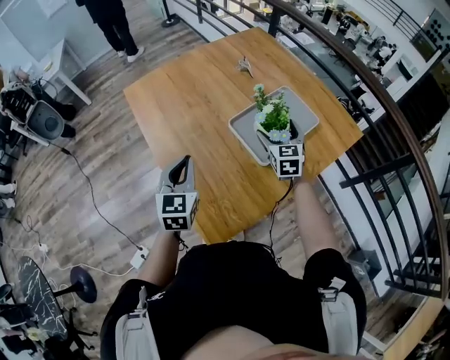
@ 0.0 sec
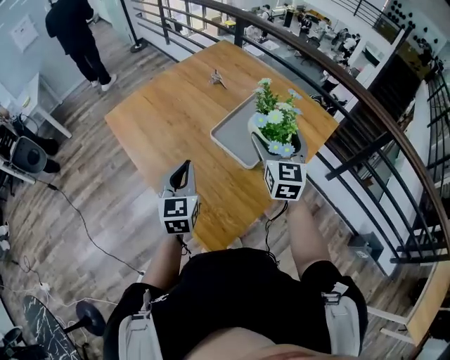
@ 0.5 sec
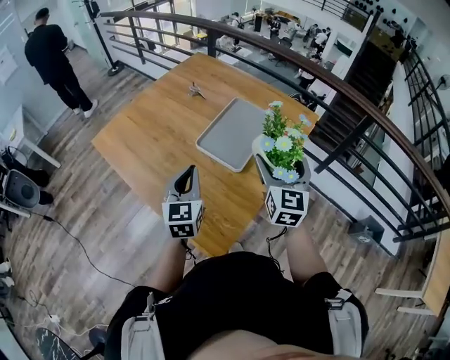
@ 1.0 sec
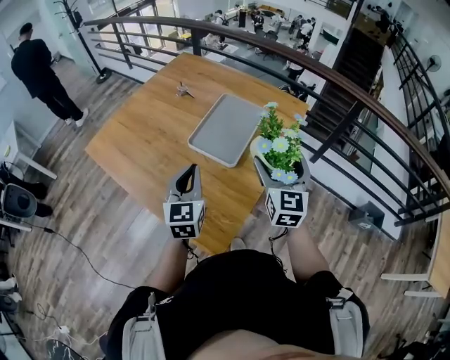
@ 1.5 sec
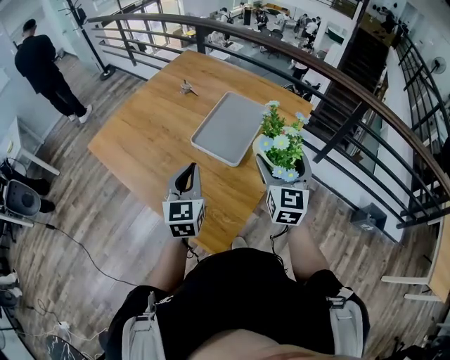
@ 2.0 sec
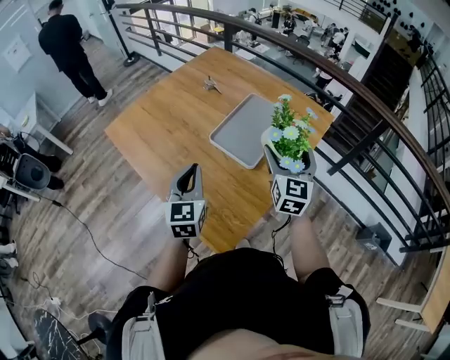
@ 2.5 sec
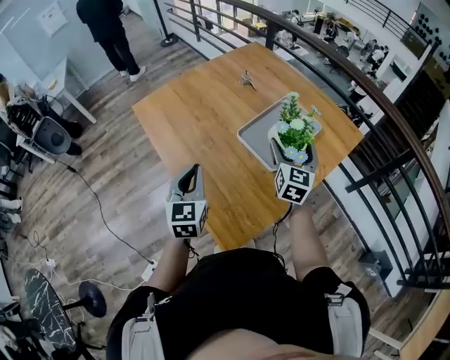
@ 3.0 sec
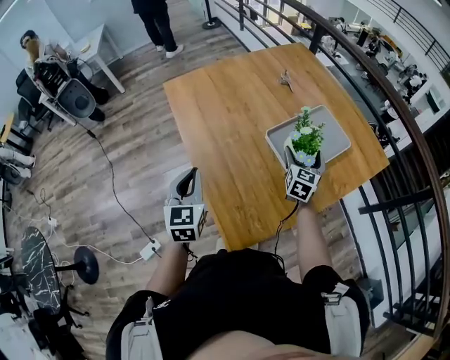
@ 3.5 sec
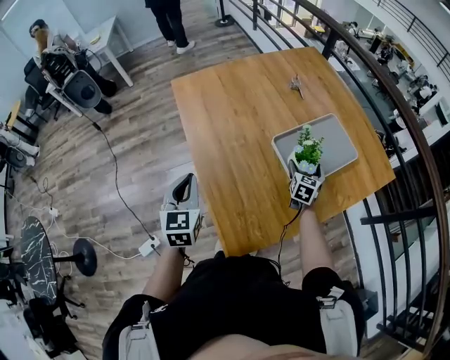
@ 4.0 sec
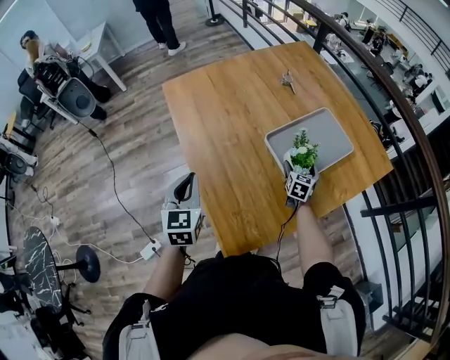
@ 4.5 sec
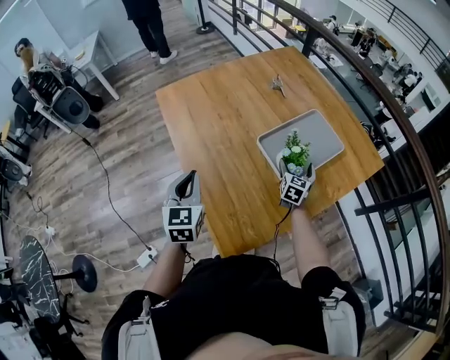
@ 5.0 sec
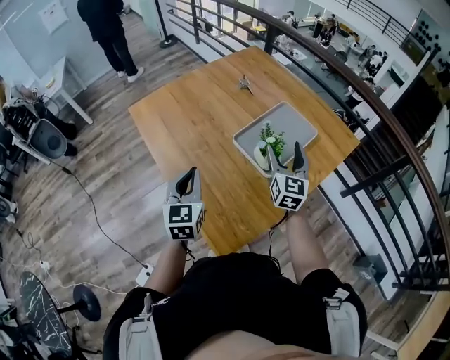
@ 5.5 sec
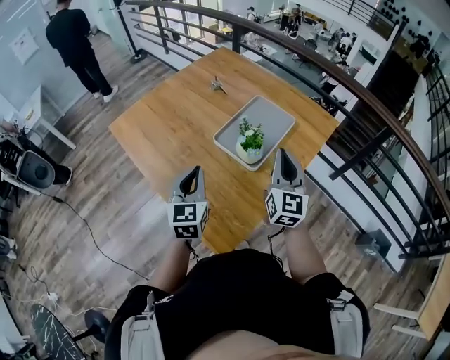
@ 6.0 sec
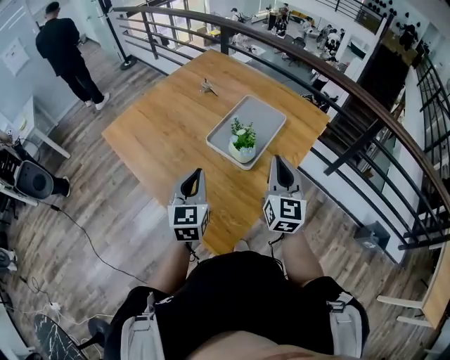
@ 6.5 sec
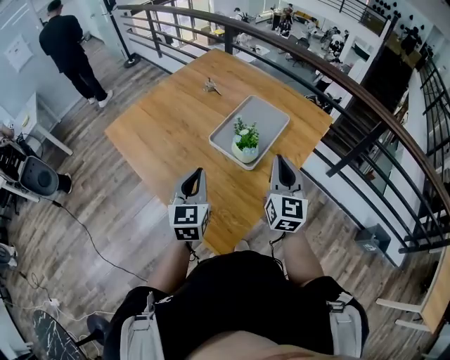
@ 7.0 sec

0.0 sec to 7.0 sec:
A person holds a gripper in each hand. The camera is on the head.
0.0 sec to 2.0 sec: The left gripper ends up roughly 10 cm from where it was, and swivels about 20 degrees; the right gripper ends up some 25 cm from where it was, and changes its angle by roughly 30 degrees.
2.0 sec to 3.5 sec: The left gripper shifts about 15 cm to the left, and rotates about 30 degrees, while the right gripper goes some 25 cm forward, downward and to the left, and changes its angle by some 20 degrees.
3.5 sec to 5.0 sec: The right gripper goes approximately 10 cm downward.
5.0 sec to 7.0 sec: The left gripper shifts roughly 15 cm to the right, and changes its angle by some 30 degrees. Meanwhile the right gripper travels upward and backward by some 30 cm, rotates some 20 degrees, and closes its fingers.

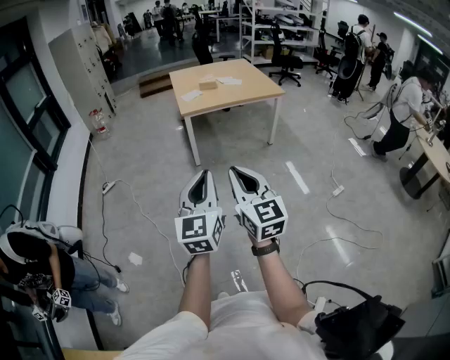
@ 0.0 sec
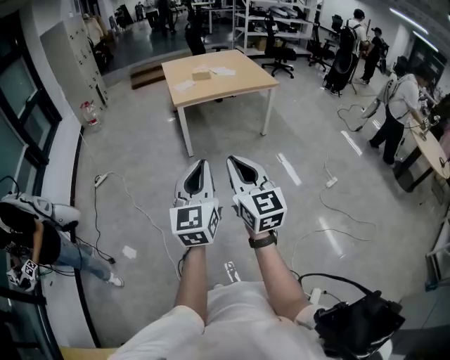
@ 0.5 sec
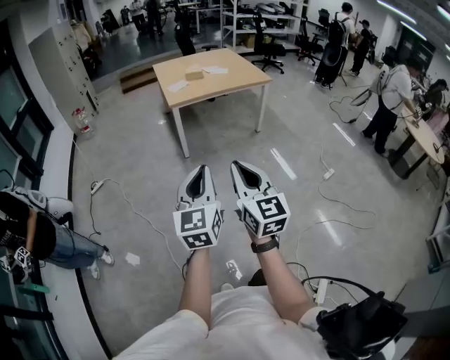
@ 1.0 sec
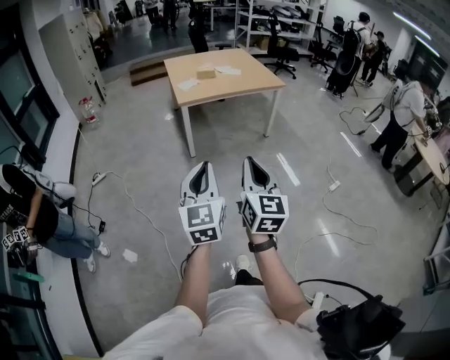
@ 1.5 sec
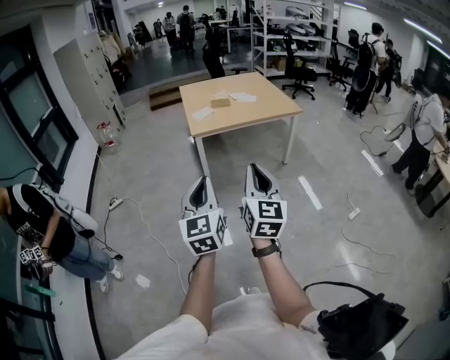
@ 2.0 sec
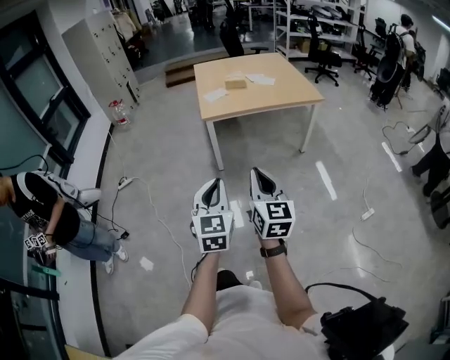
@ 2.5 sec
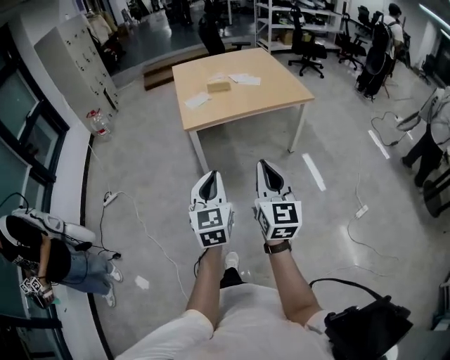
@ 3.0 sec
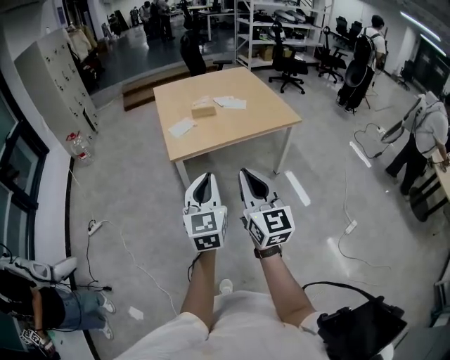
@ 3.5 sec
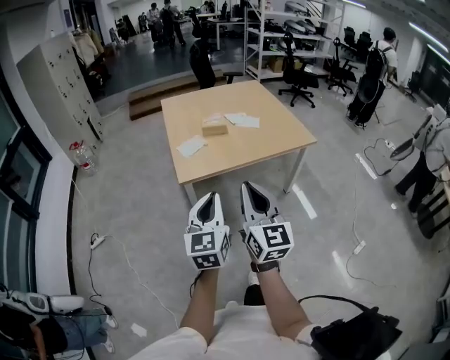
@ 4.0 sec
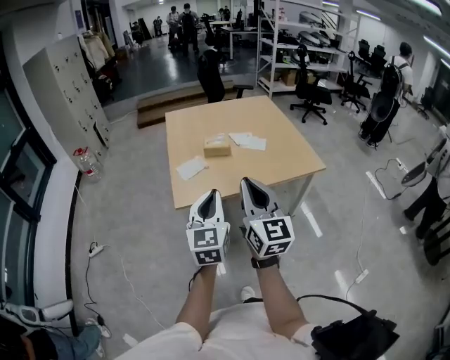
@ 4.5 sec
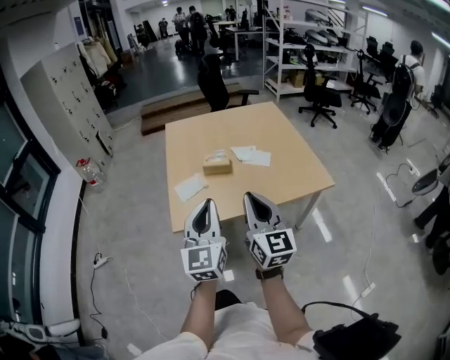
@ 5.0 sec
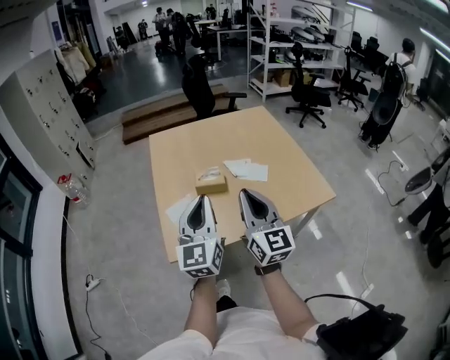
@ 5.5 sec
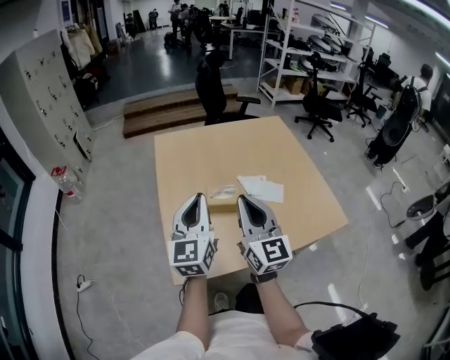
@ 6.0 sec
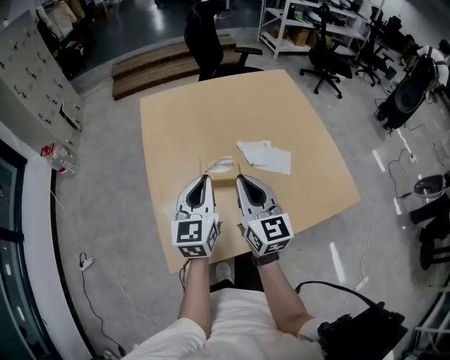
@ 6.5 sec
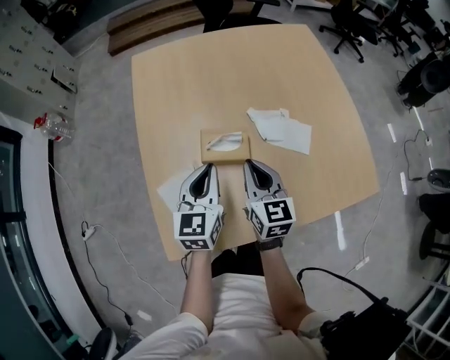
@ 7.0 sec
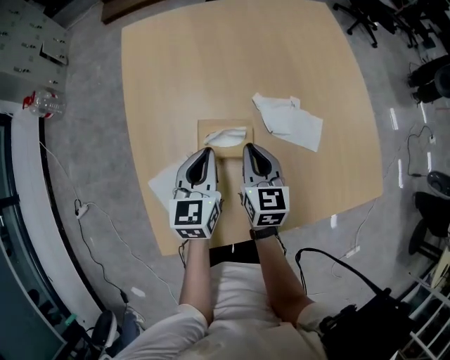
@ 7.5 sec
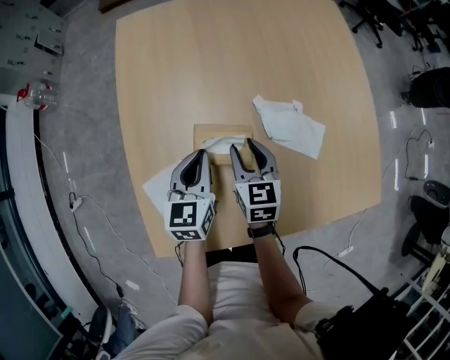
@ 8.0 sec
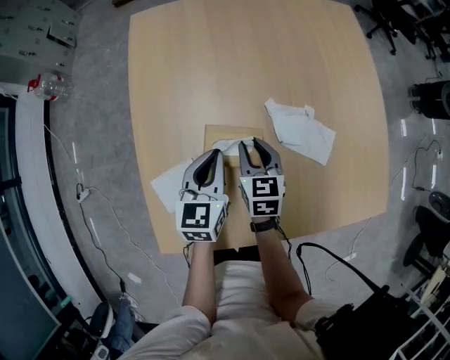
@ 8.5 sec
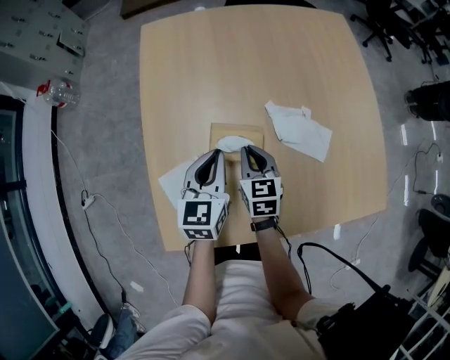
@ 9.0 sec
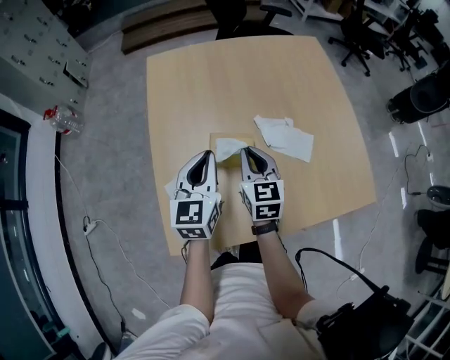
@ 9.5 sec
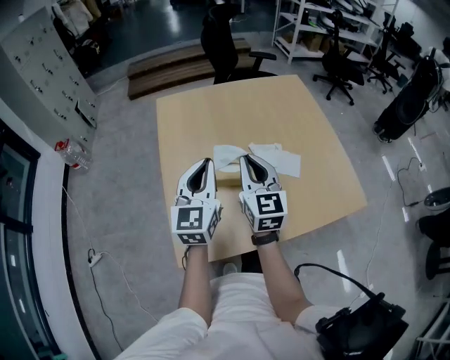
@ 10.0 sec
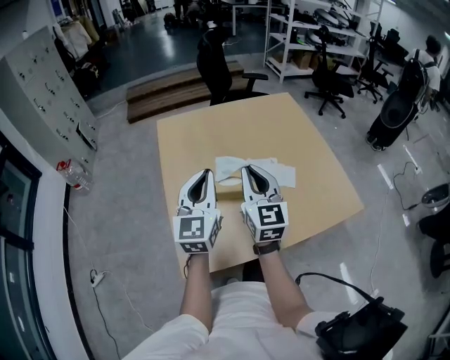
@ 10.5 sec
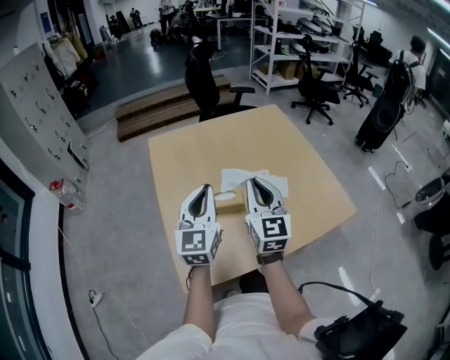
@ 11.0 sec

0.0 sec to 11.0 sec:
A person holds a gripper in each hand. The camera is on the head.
0.0 sec to 2.0 sec: Both grippers move forward, roughly 20 cm.
2.0 sec to 3.5 sec: Both grippers travel together forward, approximately 35 cm.
3.5 sec to 5.5 sec: The pair of grippers is taken forward, roughly 50 cm.
5.5 sec to 7.5 sec: Both grippers move forward and downward, roughly 50 cm. The left gripper tilts its fingers some 30 degrees downward. Meanwhile the right gripper points its fingers approximately 40 degrees further downward.
7.5 sec to 9.0 sec: The right gripper opens, then closes once more.
9.0 sec to 11.0 sec: Both grippers travel together upward and backward, some 30 cm. The left gripper swivels some 30 degrees. Meanwhile the right gripper angles its fingers upward, by about 40 degrees.

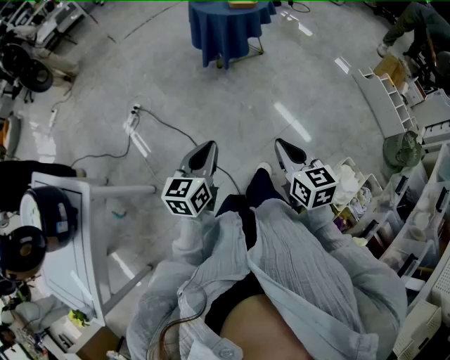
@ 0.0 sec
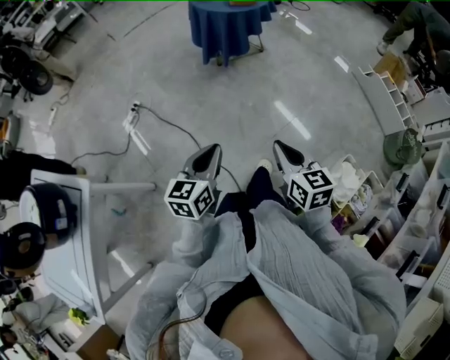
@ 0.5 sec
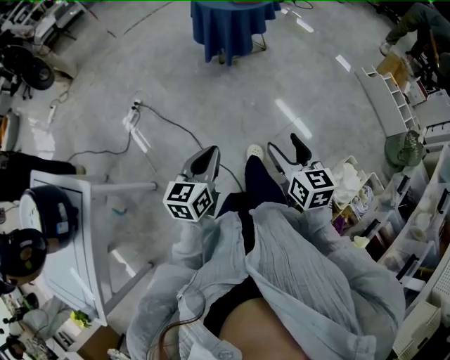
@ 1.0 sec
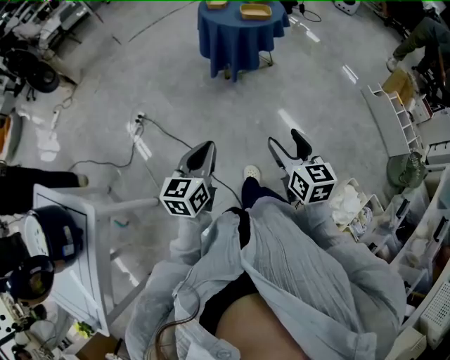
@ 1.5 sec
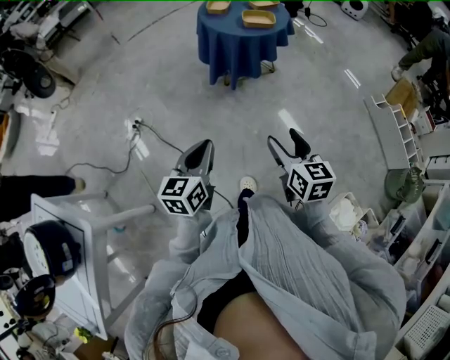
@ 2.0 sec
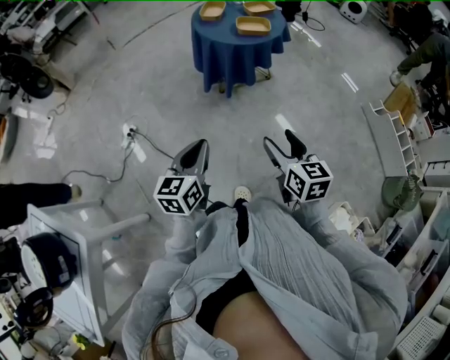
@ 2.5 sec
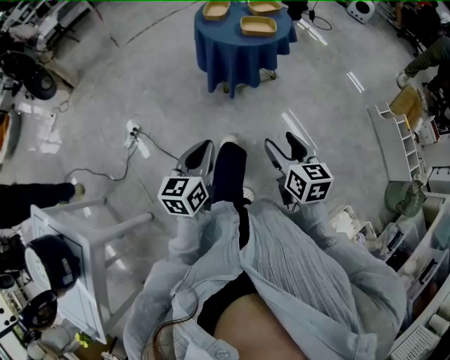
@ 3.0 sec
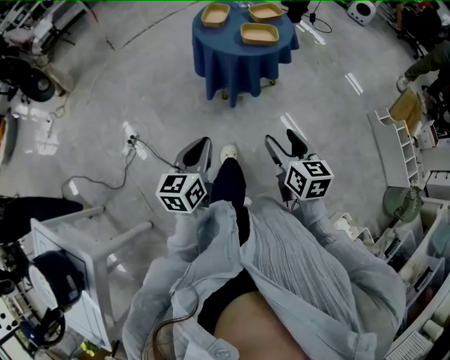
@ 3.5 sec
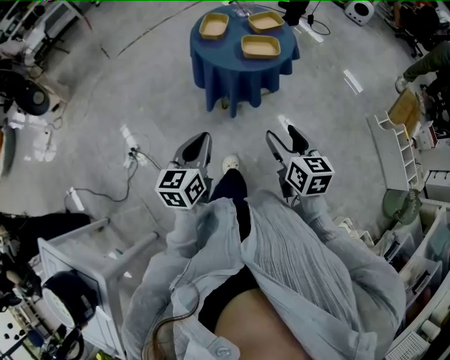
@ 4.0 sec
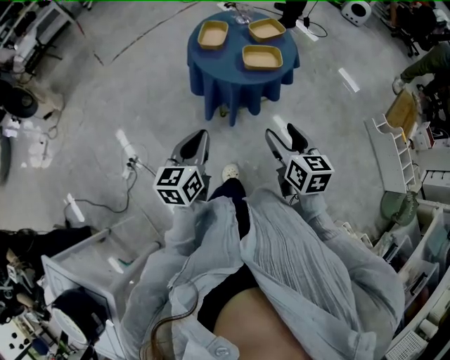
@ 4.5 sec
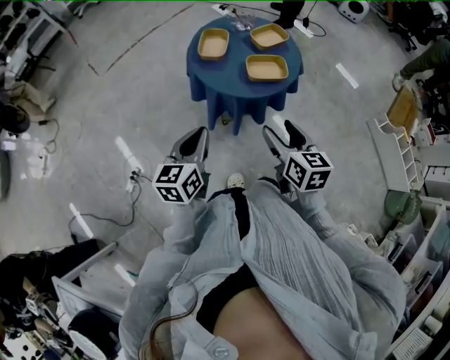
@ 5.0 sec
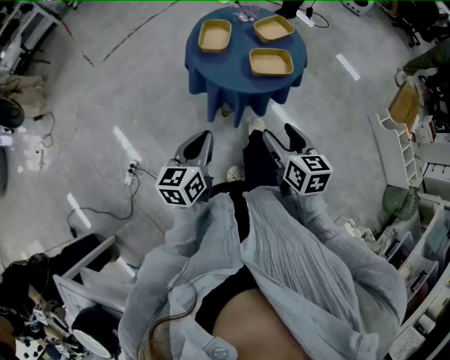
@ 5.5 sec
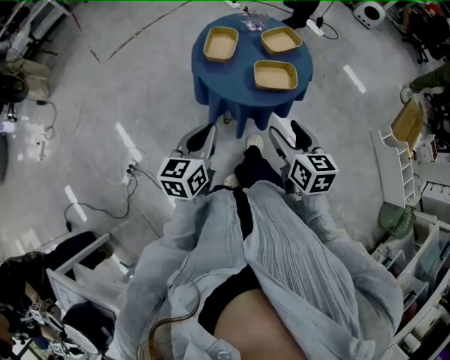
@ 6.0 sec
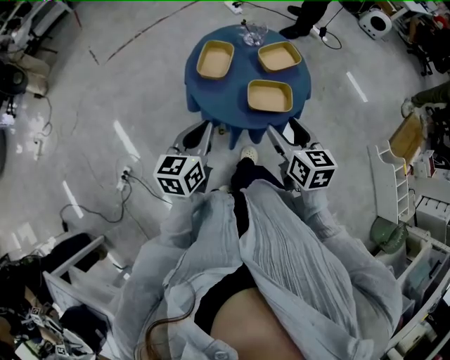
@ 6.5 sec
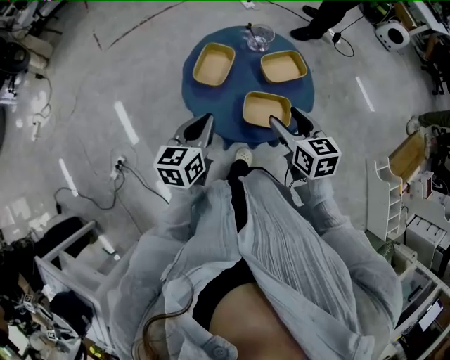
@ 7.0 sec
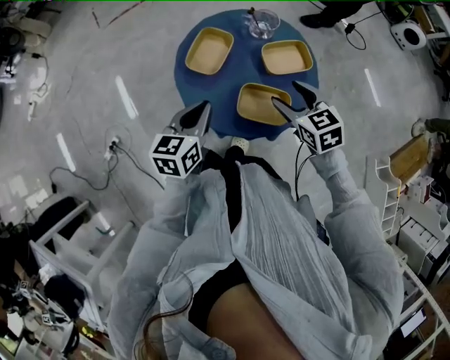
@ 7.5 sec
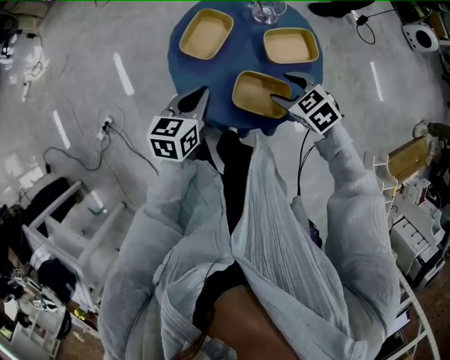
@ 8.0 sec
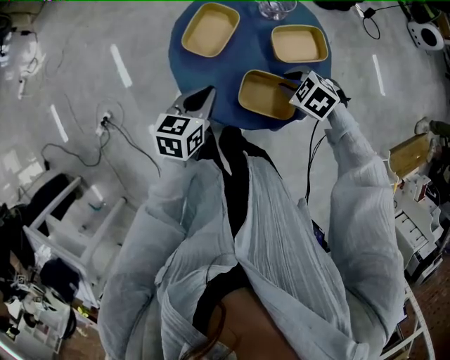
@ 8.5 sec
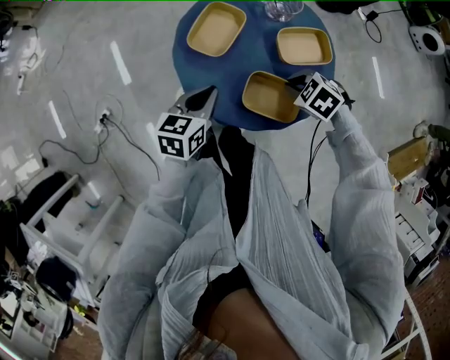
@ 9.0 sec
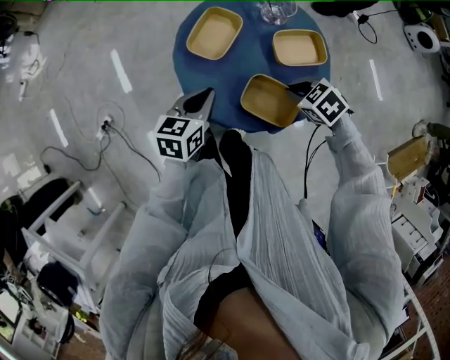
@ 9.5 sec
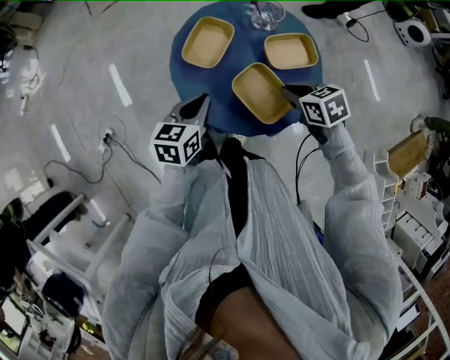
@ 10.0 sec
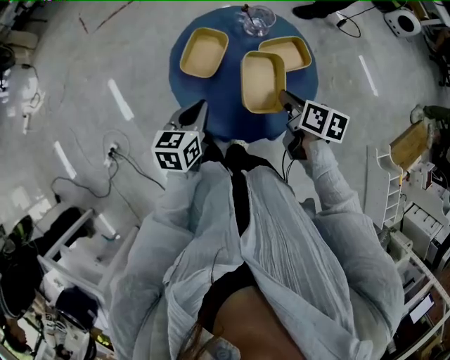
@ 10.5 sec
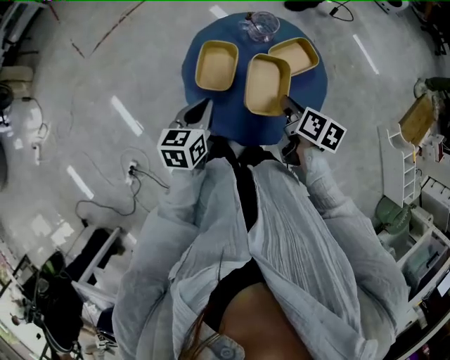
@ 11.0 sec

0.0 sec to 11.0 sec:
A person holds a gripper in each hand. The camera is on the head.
0.0 sec to 2.0 sec: Both grippers travel together forward, roughly 20 cm. The right gripper opens its fingers.
2.0 sec to 3.5 sec: The grippers both shift forward by approximately 15 cm.
3.5 sec to 5.5 sec: The grippers both shift forward by approximately 25 cm.
5.5 sec to 7.5 sec: The right gripper heads forward, covering approximately 30 cm, and turns by about 40 degrees. The left gripper heads forward and to the right, covering about 25 cm.
7.5 sec to 9.0 sec: The right gripper moves downward, some 10 cm, tips its fingers downward by approximately 30 degrees, and closes up; the left gripper is displaced downward by approximately 5 cm.
9.0 sec to 11.0 sec: The left gripper ends up roughly 10 cm from where it was; the right gripper moves upward, about 10 cm, and rolls clockwise, seen from behind, by approximately 90 degrees.
